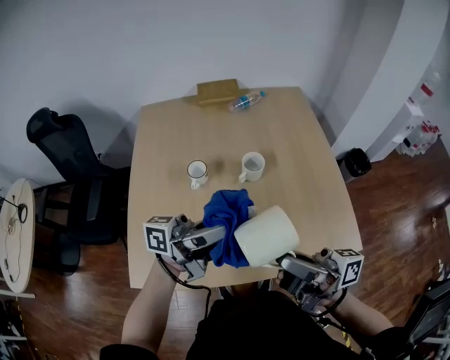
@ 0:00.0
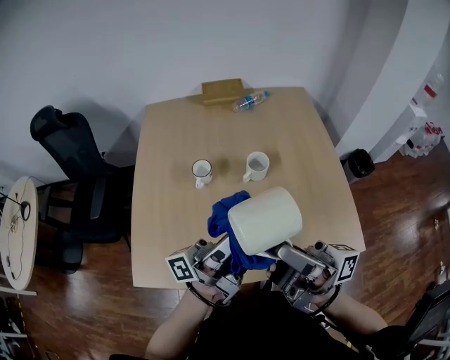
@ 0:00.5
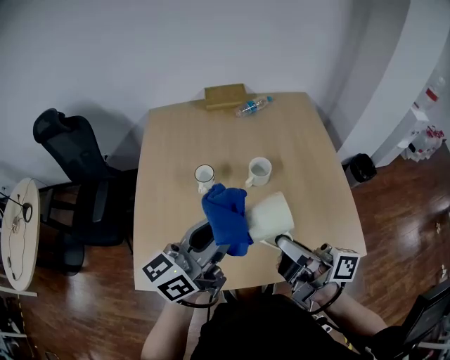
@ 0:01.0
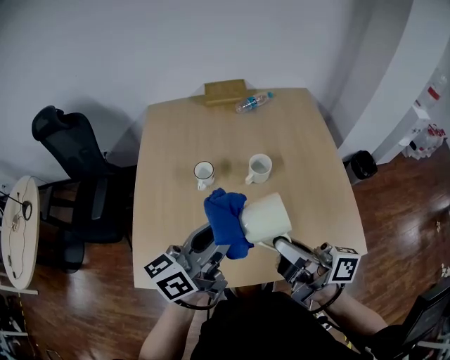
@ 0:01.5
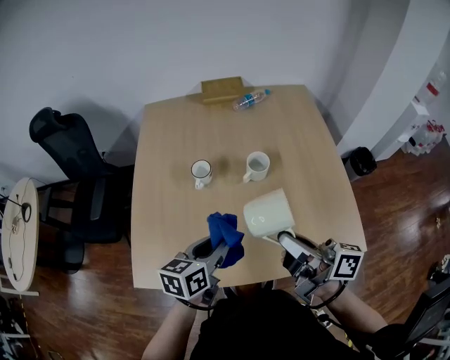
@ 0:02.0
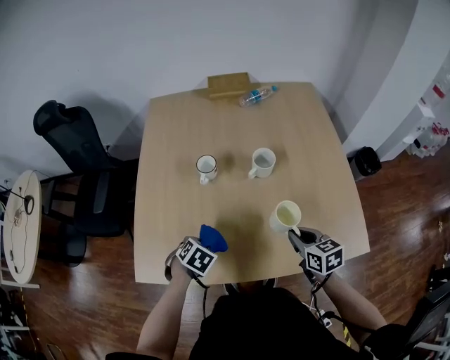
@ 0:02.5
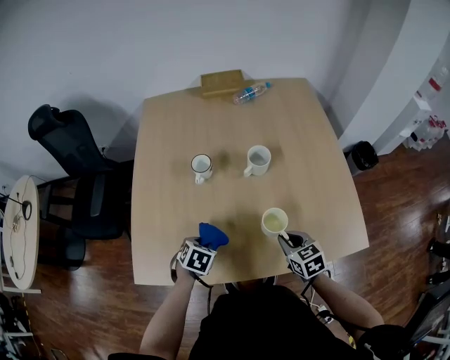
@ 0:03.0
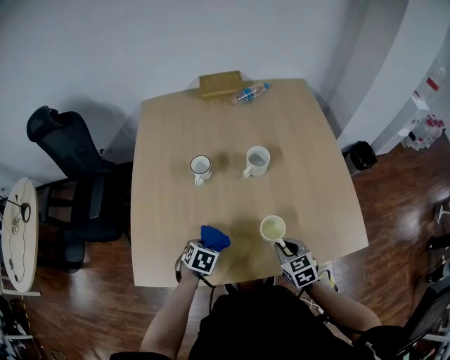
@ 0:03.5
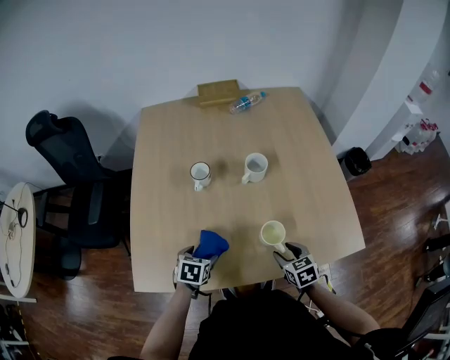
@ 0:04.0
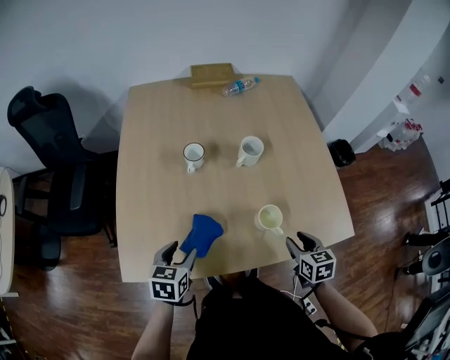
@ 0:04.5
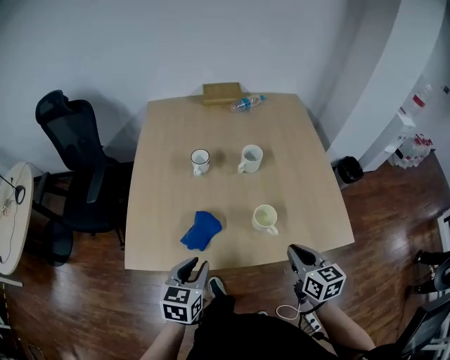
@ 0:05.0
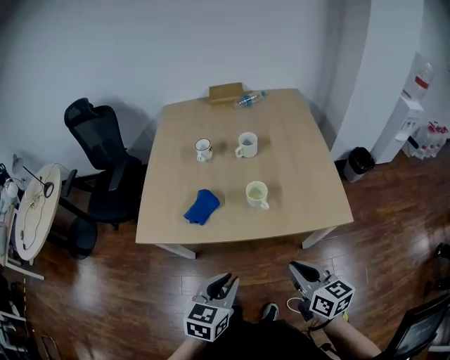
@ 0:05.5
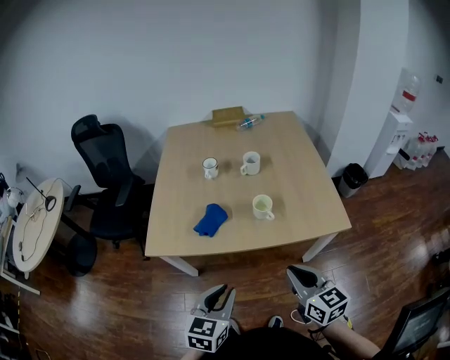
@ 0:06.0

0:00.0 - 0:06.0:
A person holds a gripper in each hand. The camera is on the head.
0:00.0 - 0:02.0: The left gripper shifts roughly 15 cm downward, and tilts its fingers approximately 50 degrees downward; the right gripper shifts by about 10 cm, and changes its angle by about 20 degrees.
0:02.0 - 0:04.0: The left gripper moves downward and to the left, about 20 cm, angles its fingers downward, by approximately 30 degrees, and opens. The right gripper travels downward by about 30 cm, points its fingers about 60 degrees further downward, and opens up.
0:04.0 - 0:06.0: The two grippers go roughly 35 cm backward and upward. The left gripper tips its fingers upward by some 30 degrees, and closes. The right gripper angles its fingers upward, by approximately 30 degrees, and closes up.

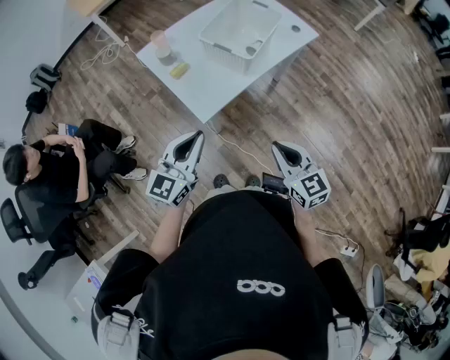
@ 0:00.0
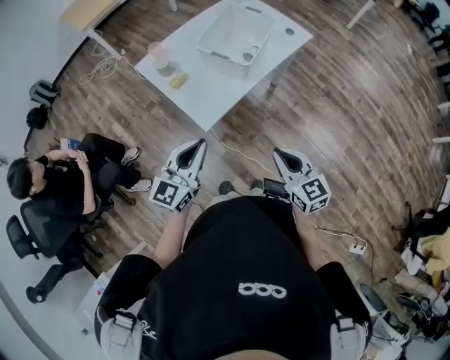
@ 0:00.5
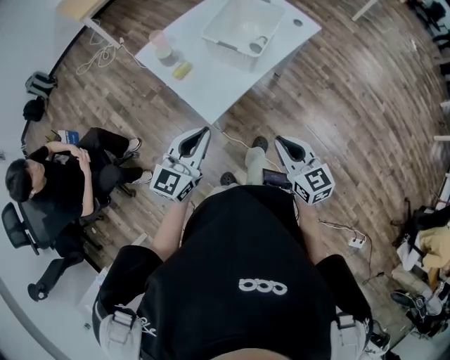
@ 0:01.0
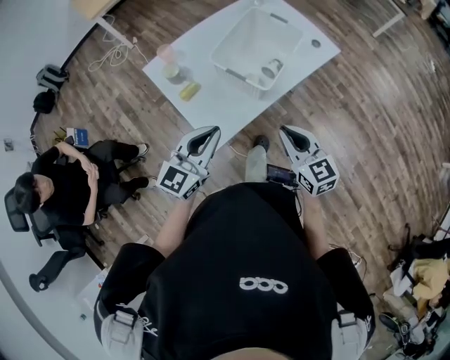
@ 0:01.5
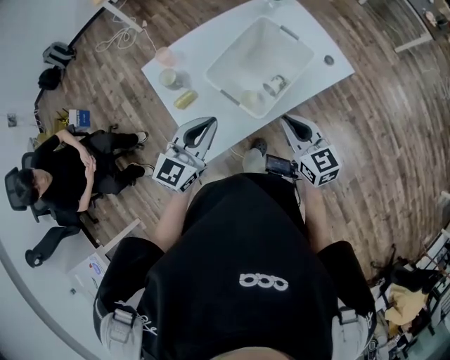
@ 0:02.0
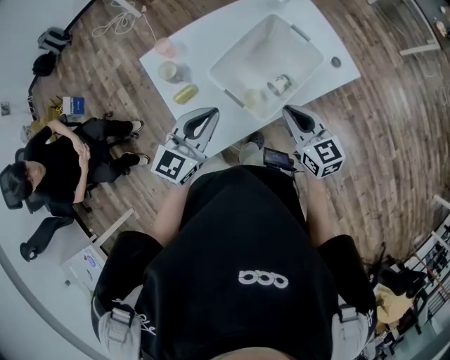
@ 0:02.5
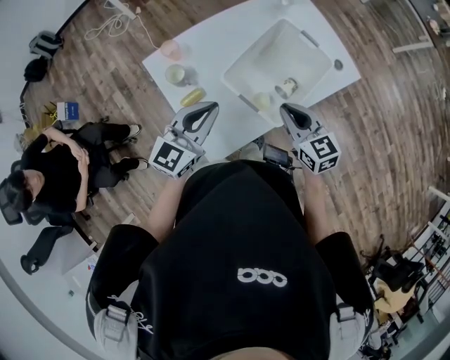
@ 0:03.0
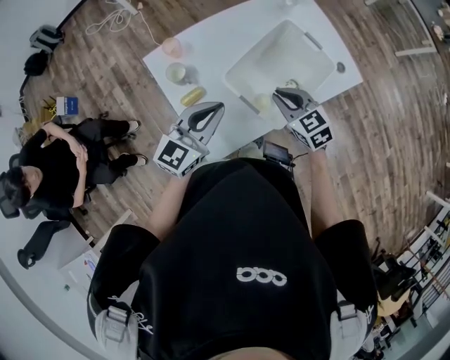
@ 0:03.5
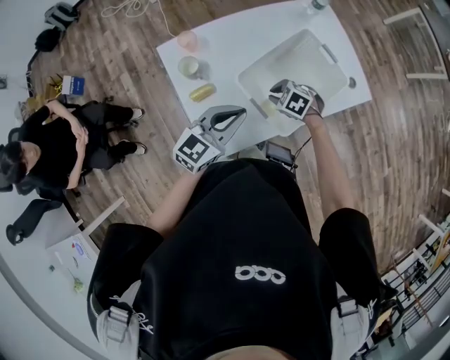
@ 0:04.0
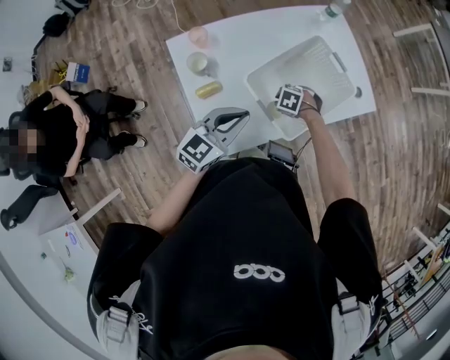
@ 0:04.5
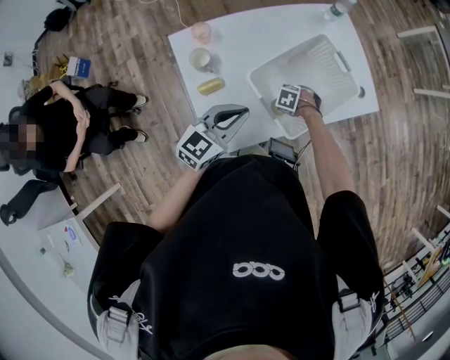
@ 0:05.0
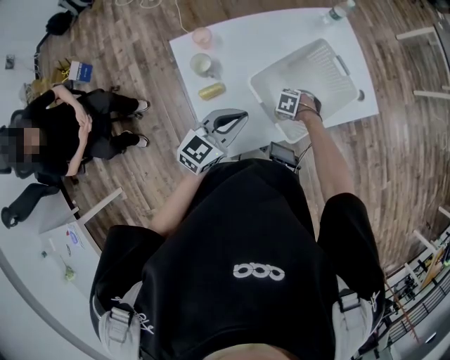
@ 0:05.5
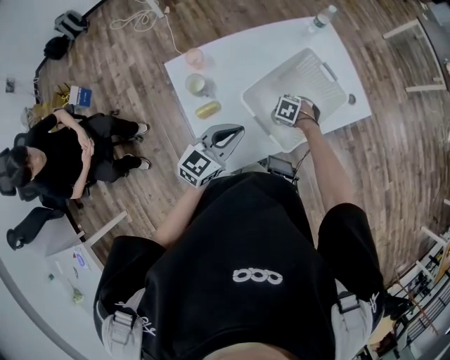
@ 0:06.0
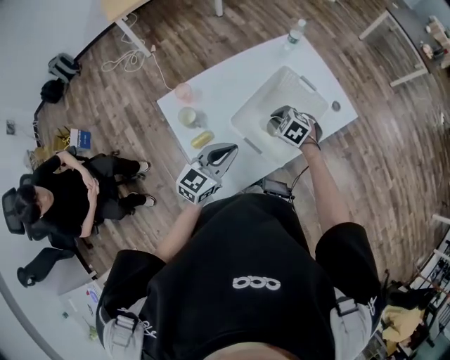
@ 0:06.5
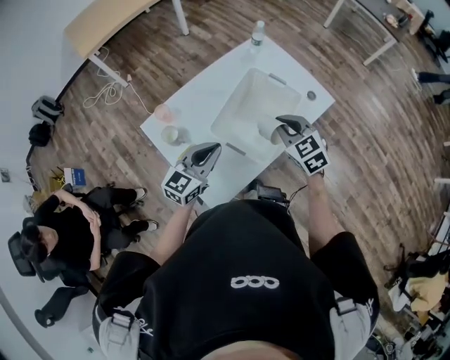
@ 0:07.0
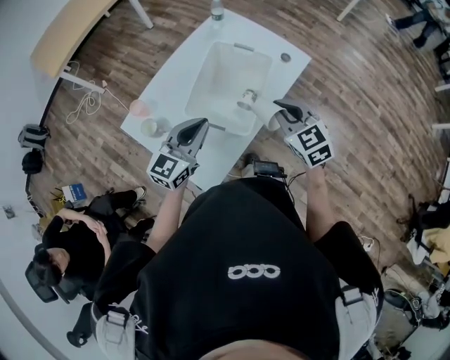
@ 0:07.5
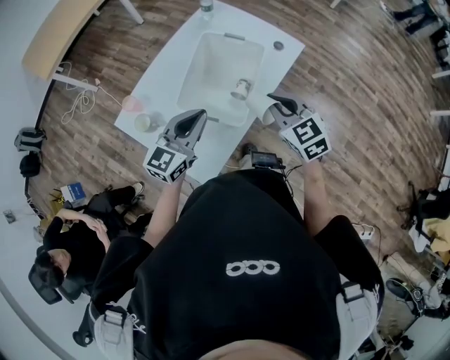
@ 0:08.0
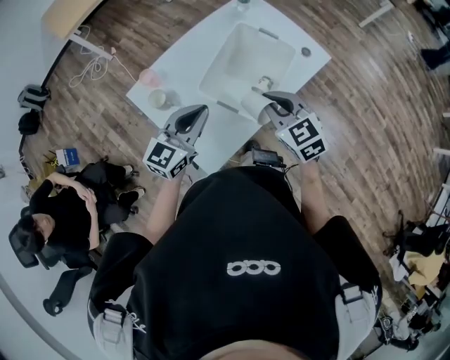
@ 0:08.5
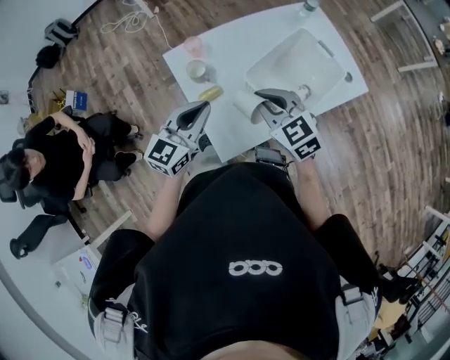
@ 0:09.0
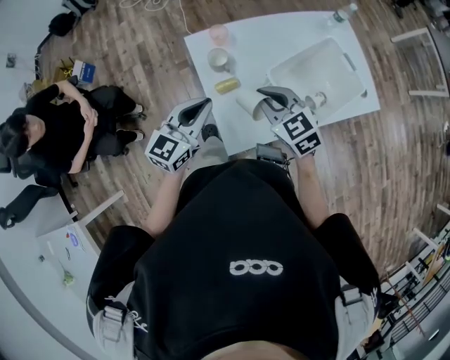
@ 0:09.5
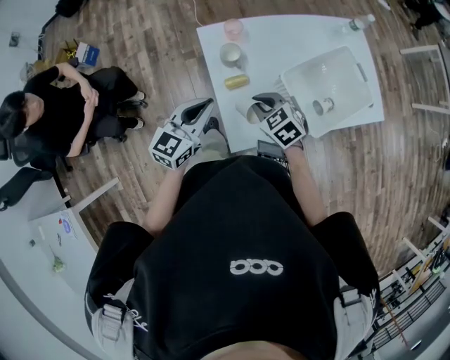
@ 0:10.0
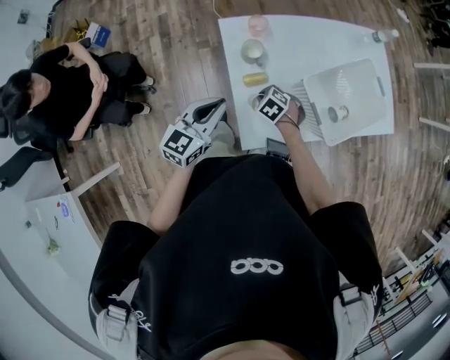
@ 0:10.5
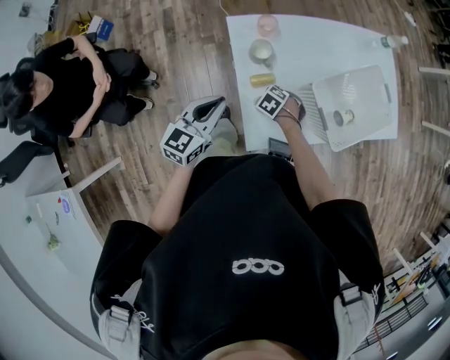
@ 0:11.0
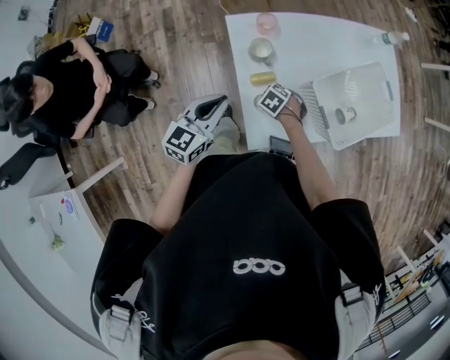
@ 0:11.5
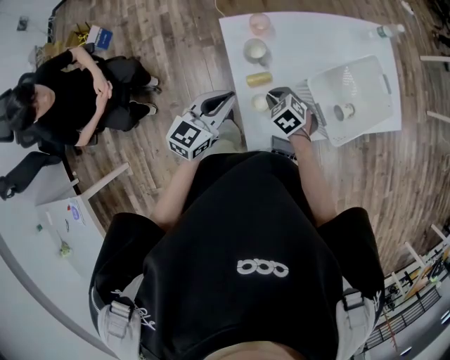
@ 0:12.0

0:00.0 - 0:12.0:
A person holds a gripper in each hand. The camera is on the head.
0:00.0 - 0:02.0: Both grippers move forward, roughly 30 cm.
0:02.0 - 0:04.0: The right gripper moves downward, some 20 cm, and points its fingers some 50 degrees further downward. The left gripper shifts by some 10 cm.
0:04.0 - 0:06.0: The right gripper moves downward, approximately 5 cm.
0:06.0 - 0:08.0: The left gripper goes some 10 cm upward, and changes its angle by some 20 degrees. Meanwhile the right gripper moves upward, approximately 30 cm, and points its fingers some 50 degrees further upward.
0:08.0 - 0:10.0: The left gripper shifts by about 30 cm, and changes its angle by some 40 degrees. Meanwhile the right gripper changes place by some 35 cm, and changes its angle by approximately 50 degrees.
0:10.0 - 0:12.0: The right gripper moves downward, some 10 cm.

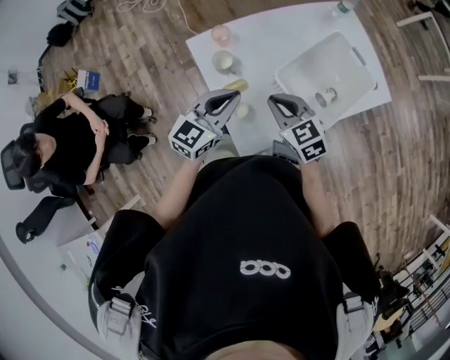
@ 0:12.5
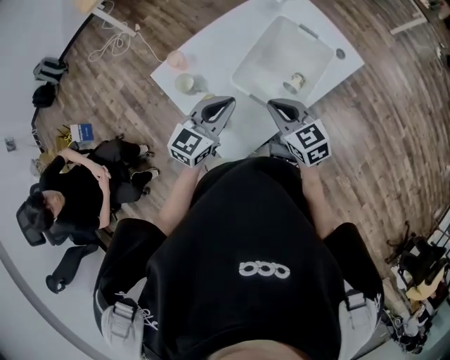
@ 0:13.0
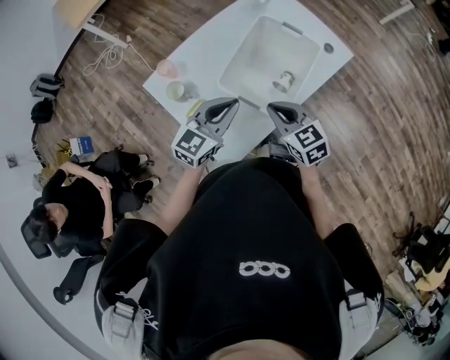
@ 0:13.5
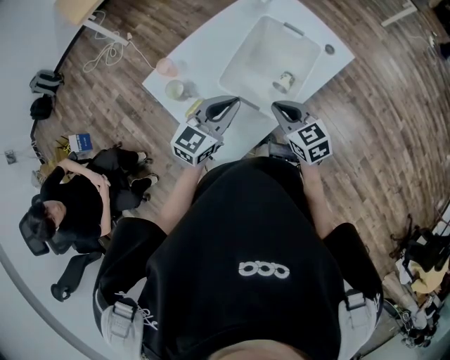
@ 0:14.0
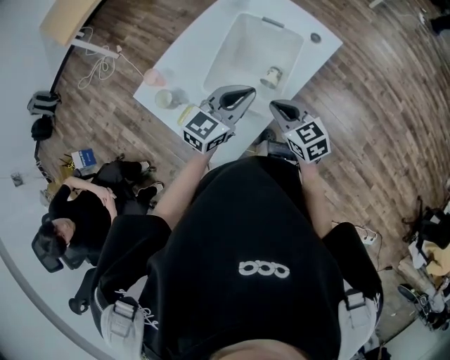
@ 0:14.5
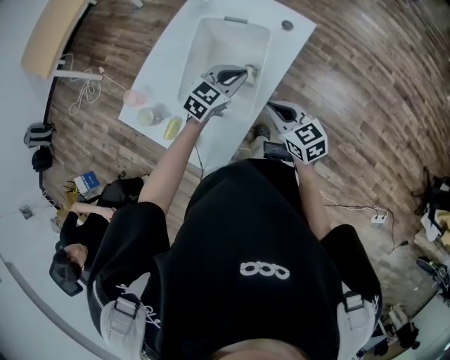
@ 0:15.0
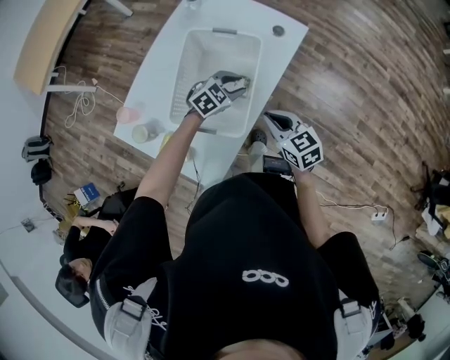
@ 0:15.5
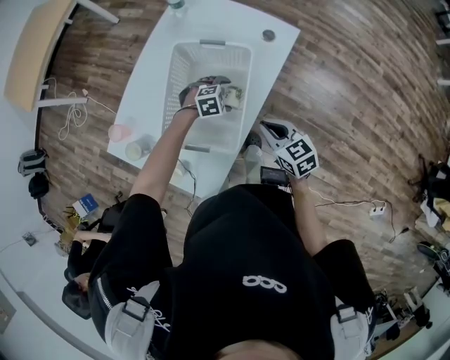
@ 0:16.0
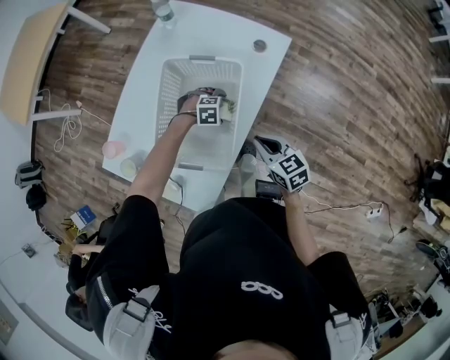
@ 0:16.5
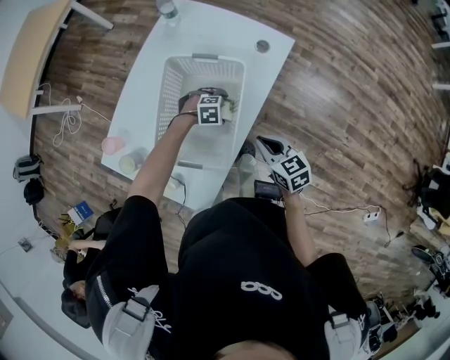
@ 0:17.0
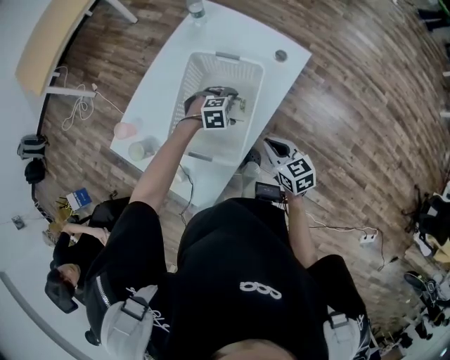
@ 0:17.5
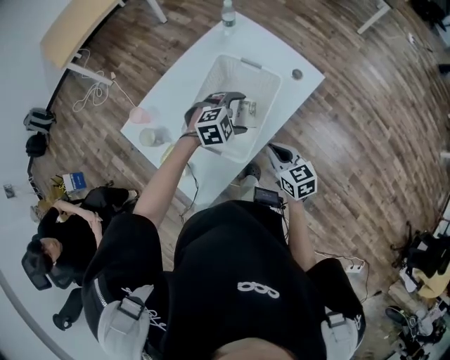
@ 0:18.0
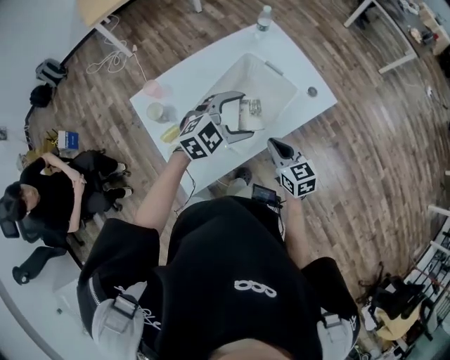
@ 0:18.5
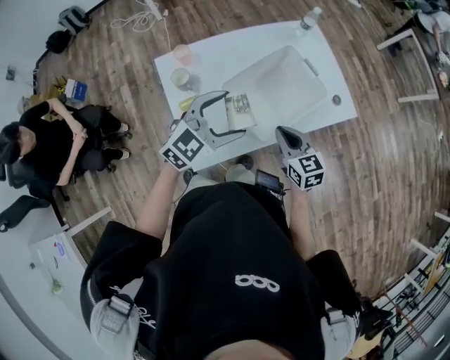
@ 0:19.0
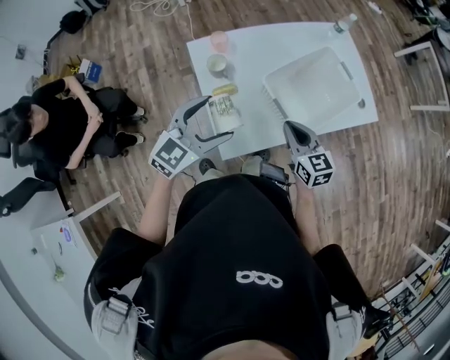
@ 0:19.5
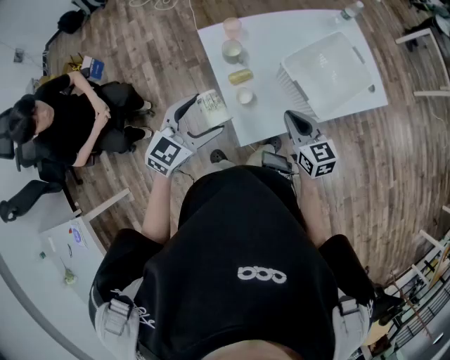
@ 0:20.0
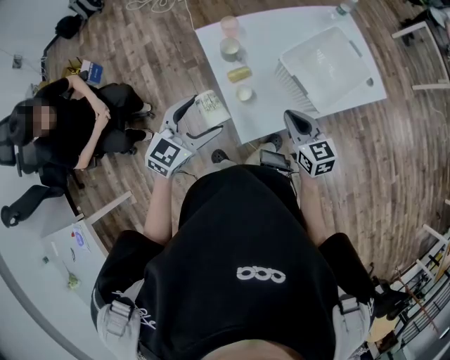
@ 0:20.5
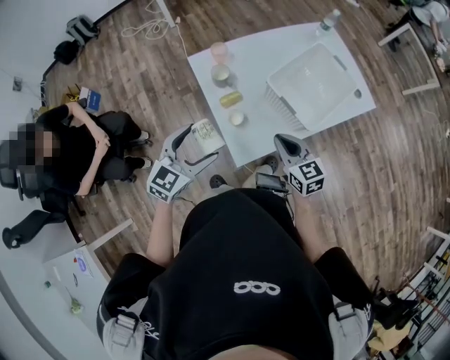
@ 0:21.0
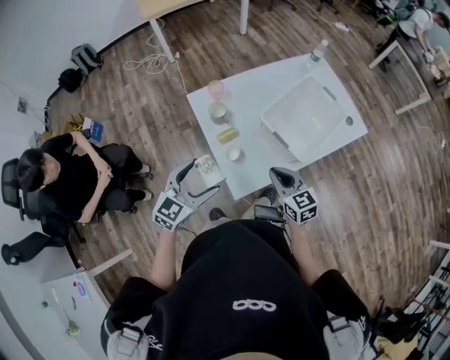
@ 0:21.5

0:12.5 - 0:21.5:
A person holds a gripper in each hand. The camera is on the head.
0:12.5 - 0:14.5: The right gripper shifts by some 20 cm, and swivels about 30 degrees. Meanwhile the left gripper shifts by some 25 cm, and turns by about 30 degrees.
0:14.5 - 0:17.0: The left gripper is displaced downward by about 30 cm, tips its fingers downward by approximately 60 degrees, and opens its fingers. The right gripper changes place by roughly 15 cm, and rotates some 20 degrees.
0:17.0 - 0:19.5: The right gripper shifts by approximately 25 cm, and swivels some 40 degrees. The left gripper shifts by roughly 50 cm, and points its fingers approximately 50 degrees further upward.
0:19.5 - 0:21.5: The right gripper moves backward and to the left, about 10 cm. Meanwhile the left gripper goes roughly 10 cm to the left and backward.
